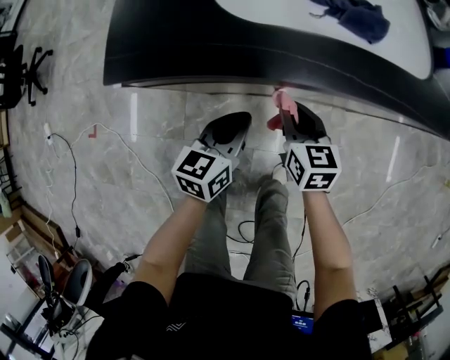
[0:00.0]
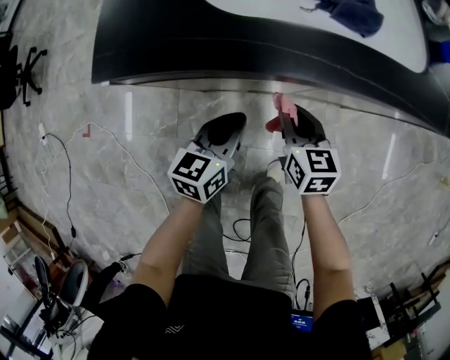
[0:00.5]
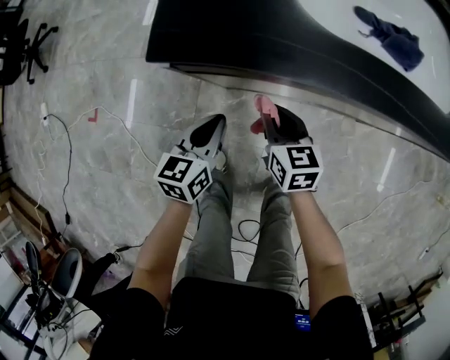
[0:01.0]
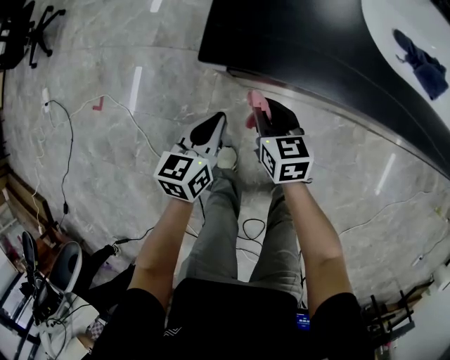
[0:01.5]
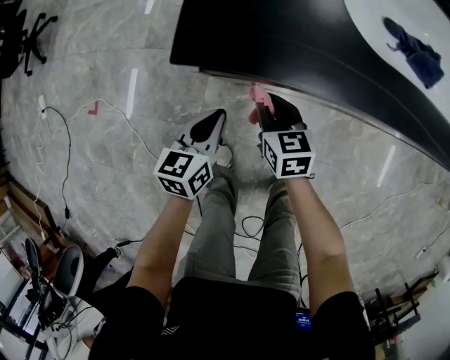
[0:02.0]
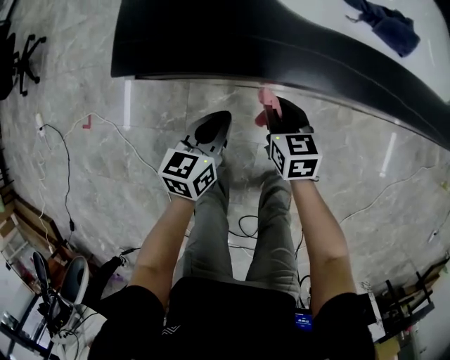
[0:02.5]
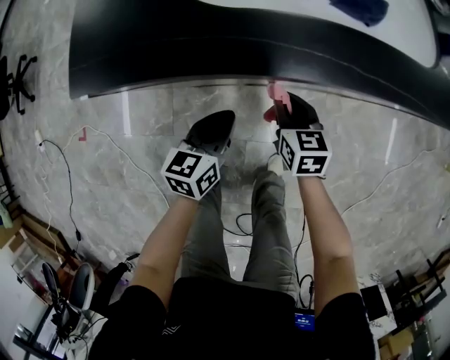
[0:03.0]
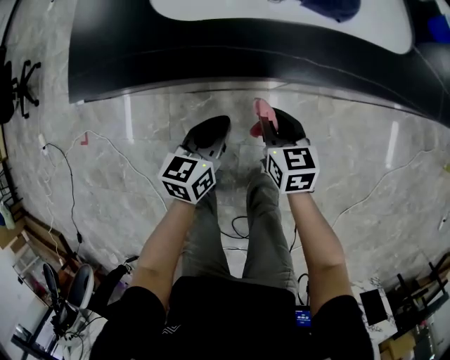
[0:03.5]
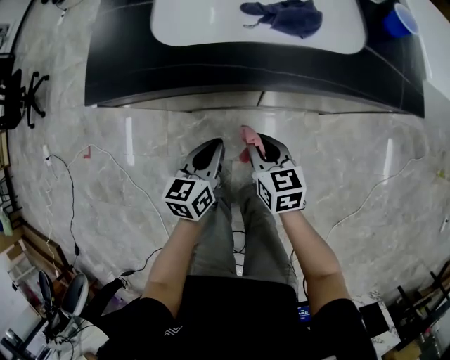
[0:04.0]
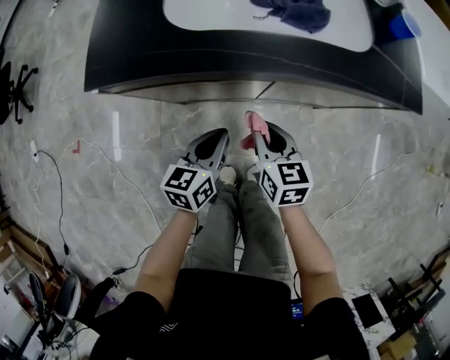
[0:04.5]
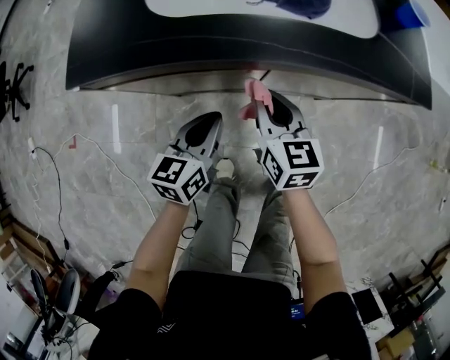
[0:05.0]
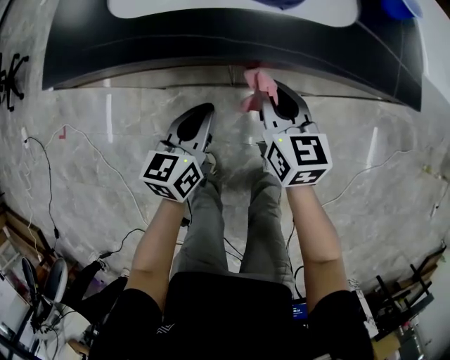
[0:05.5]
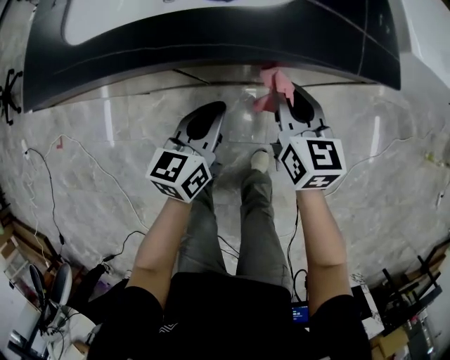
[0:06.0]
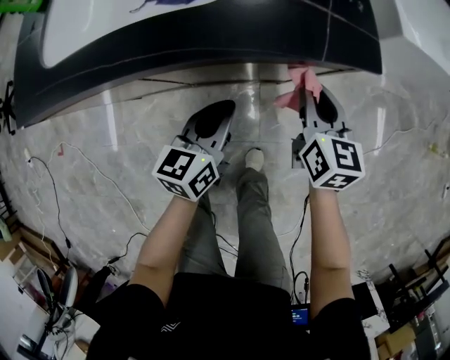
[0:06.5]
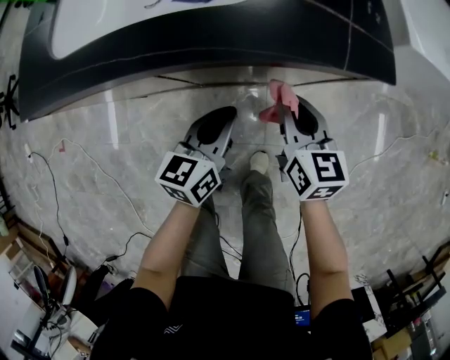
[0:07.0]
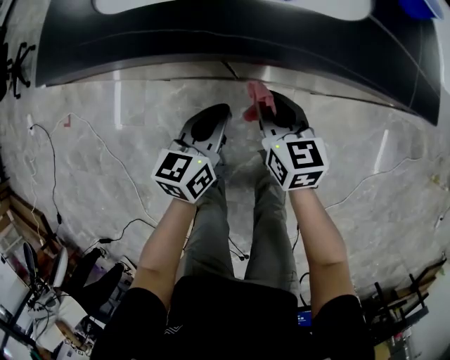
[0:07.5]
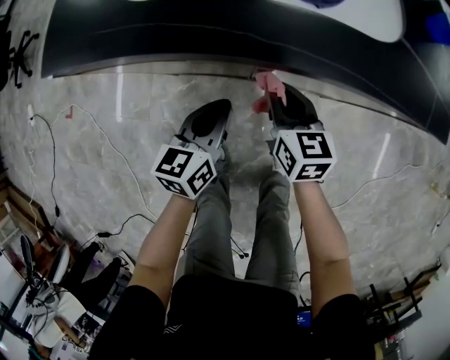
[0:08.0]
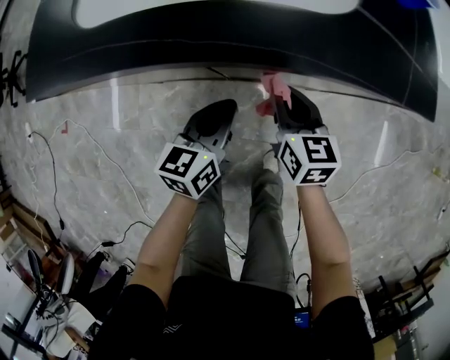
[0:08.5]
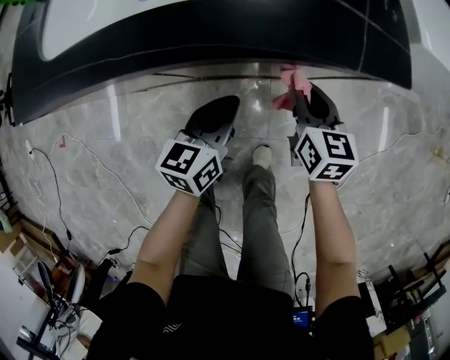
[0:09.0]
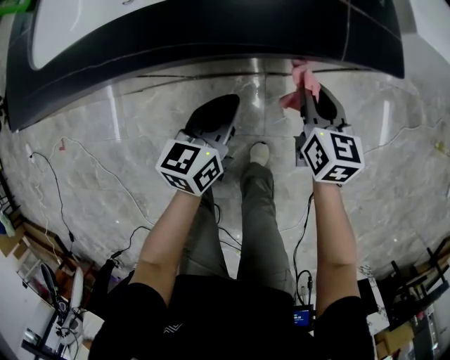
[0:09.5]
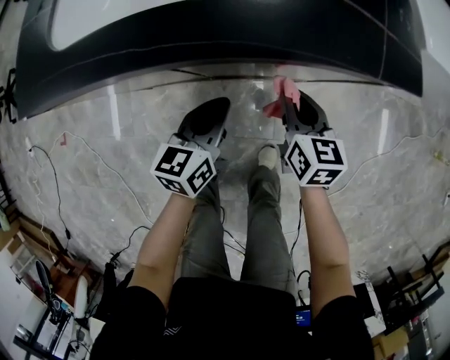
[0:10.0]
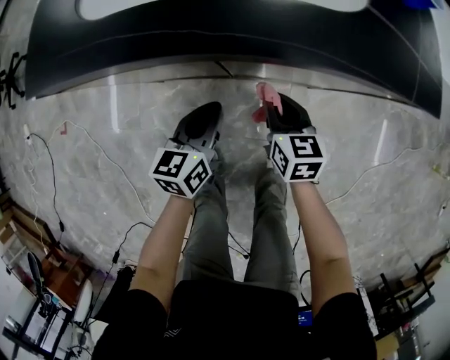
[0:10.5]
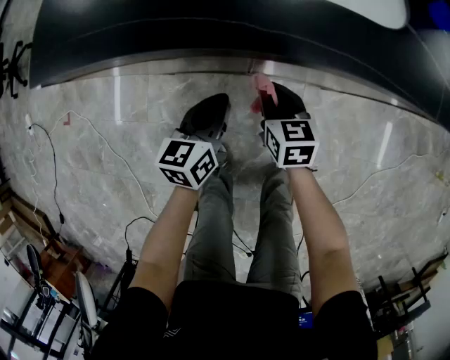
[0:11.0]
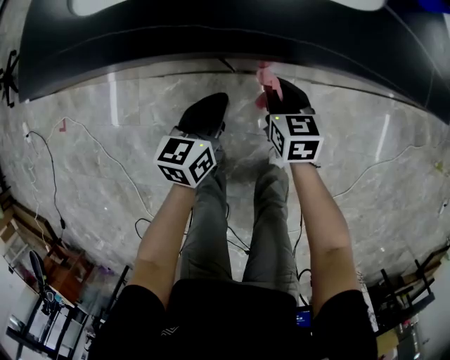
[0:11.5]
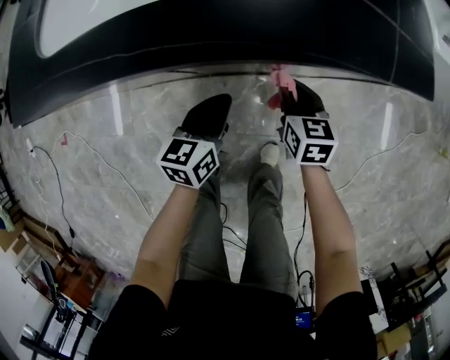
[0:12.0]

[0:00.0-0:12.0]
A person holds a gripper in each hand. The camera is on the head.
0:00.0 to 0:02.0: The grippers both shift to the left by about 20 cm.
0:02.0 to 0:04.0: Both grippers move to the right, approximately 25 cm.
0:04.0 to 0:06.0: Both grippers move to the right, about 20 cm.
0:06.0 to 0:08.0: The left gripper is displaced to the left by about 10 cm. Meanwhile the right gripper shifts some 15 cm to the left and downward.
0:08.0 to 0:10.0: The grippers both shift to the right by approximately 15 cm.
0:10.0 to 0:12.0: The left gripper moves some 15 cm to the left and comes back. The right gripper shifts approximately 5 cm downward, and reaches some 20 cm to the left, then returns.

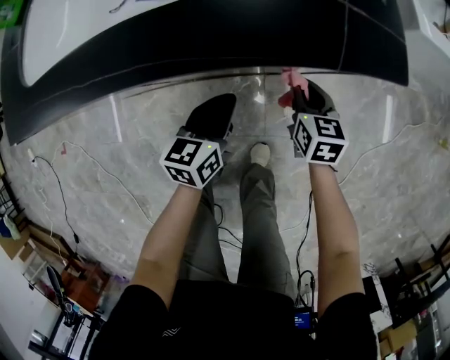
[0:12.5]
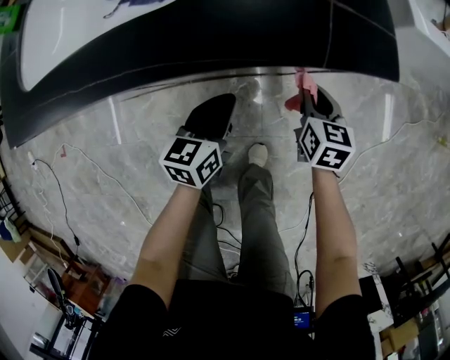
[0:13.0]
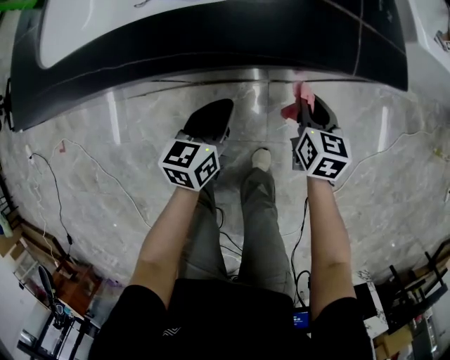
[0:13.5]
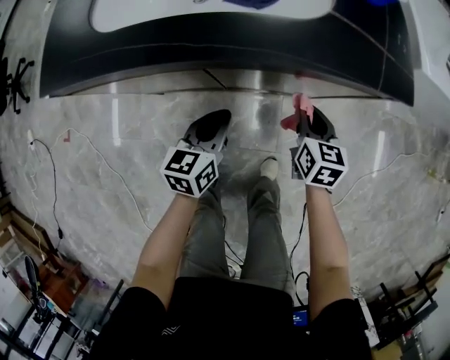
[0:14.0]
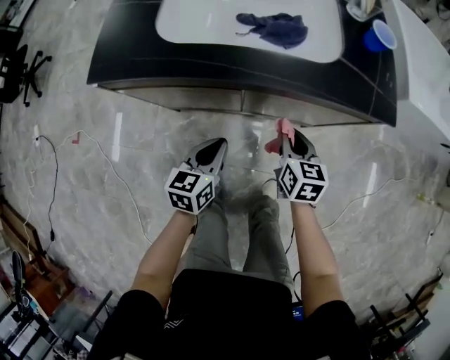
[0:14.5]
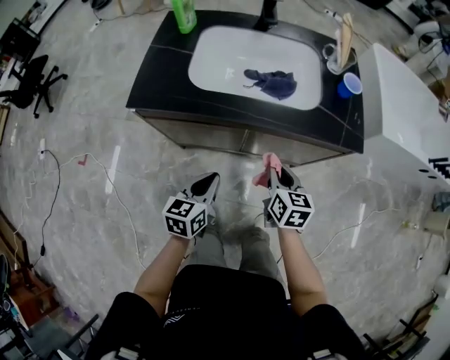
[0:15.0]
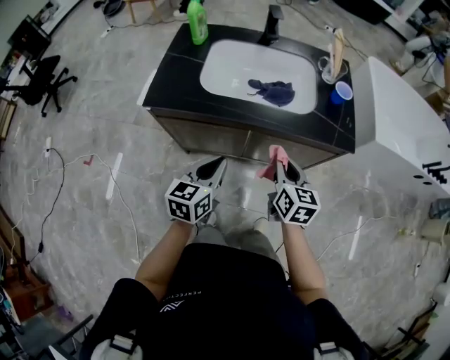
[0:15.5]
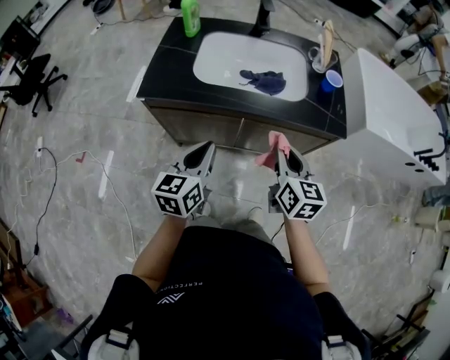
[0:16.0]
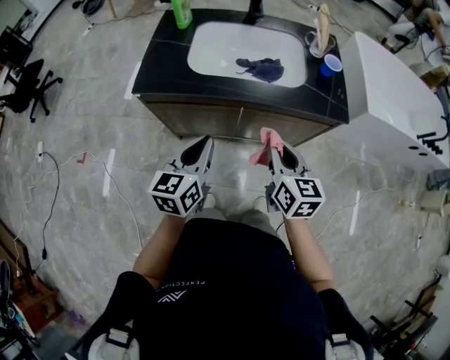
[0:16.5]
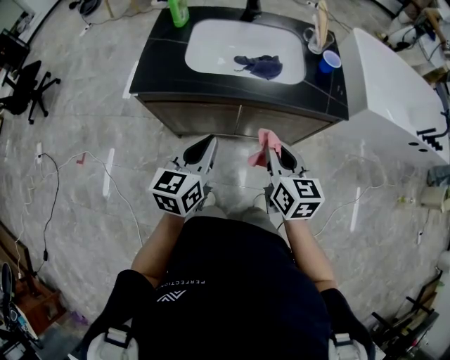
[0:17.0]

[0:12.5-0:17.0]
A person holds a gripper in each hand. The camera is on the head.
0:12.5 to 0:14.5: The left gripper is displaced to the left, backward and upward by some 25 cm, while the right gripper travels to the left, upward and backward by roughly 25 cm.
0:14.5 to 0:17.0: The right gripper moves upward and backward, approximately 25 cm. Meanwhile the left gripper heads upward, covering roughly 25 cm.

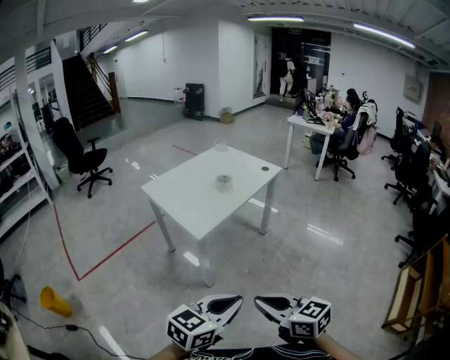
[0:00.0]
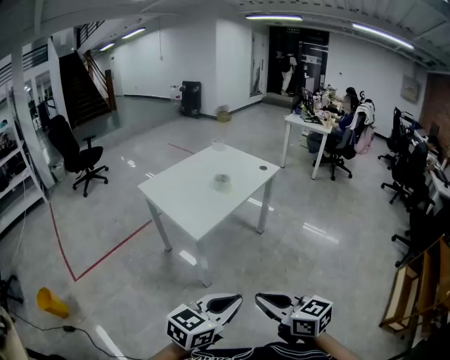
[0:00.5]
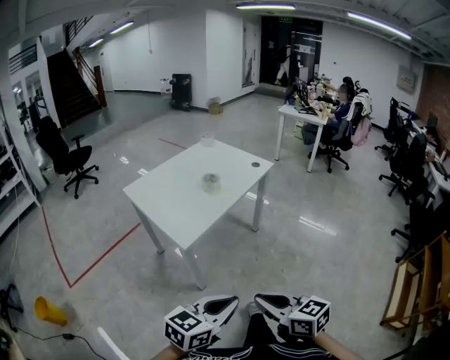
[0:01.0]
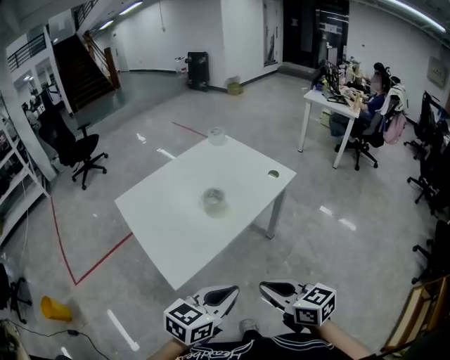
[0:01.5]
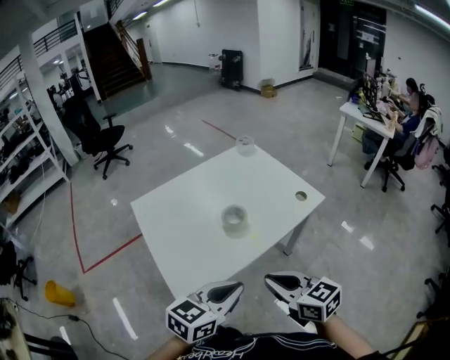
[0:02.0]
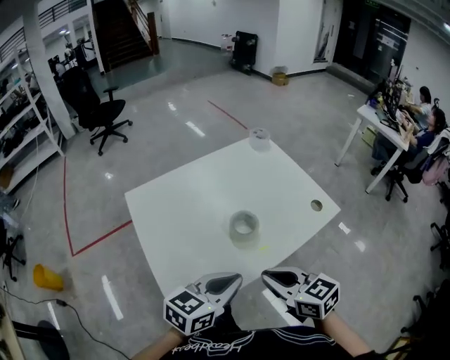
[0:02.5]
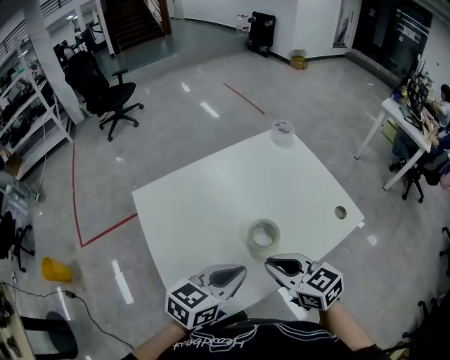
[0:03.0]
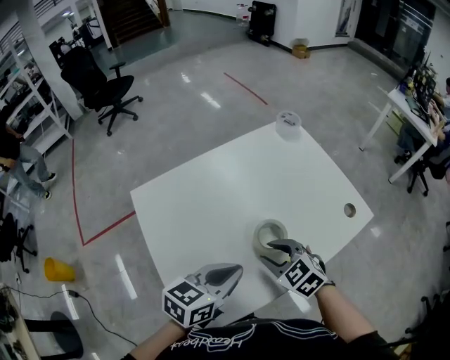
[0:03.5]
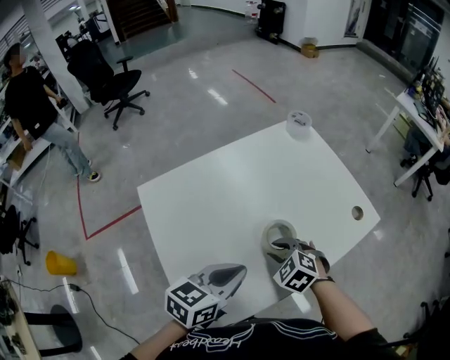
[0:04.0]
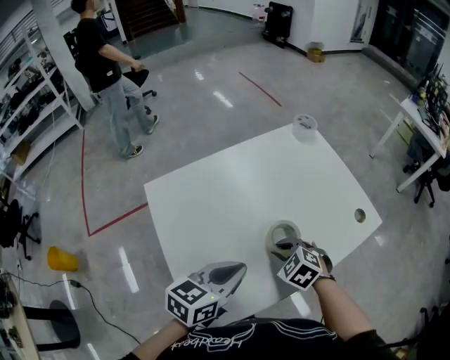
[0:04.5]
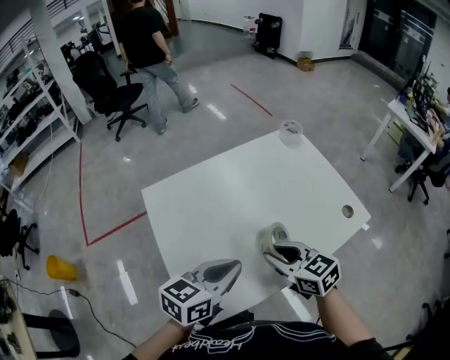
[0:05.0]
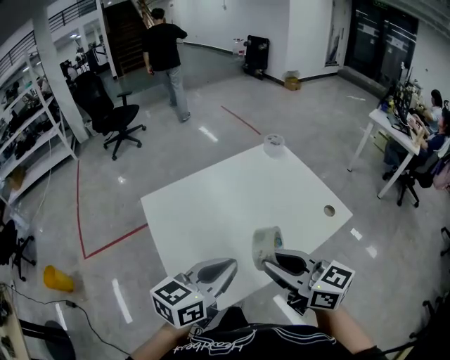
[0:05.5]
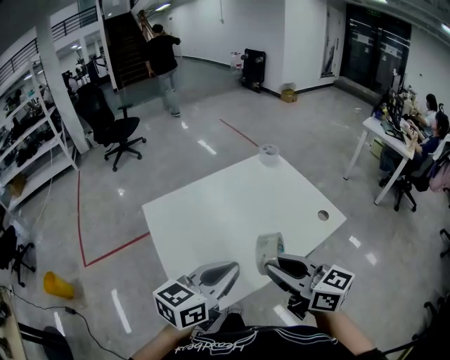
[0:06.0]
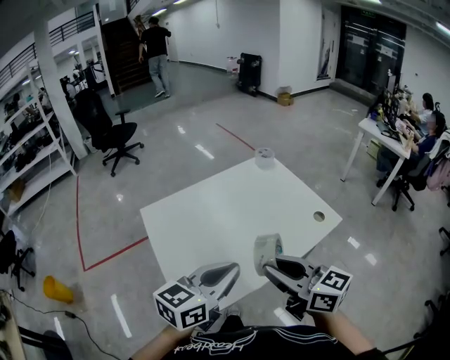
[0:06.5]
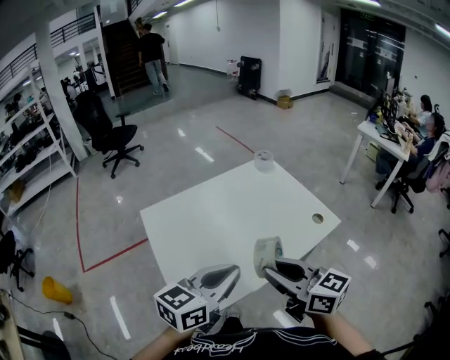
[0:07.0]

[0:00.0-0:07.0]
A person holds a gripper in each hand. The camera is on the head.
0:00.0 to 0:02.0: The pair of grippers is taken forward, about 40 cm.
0:02.0 to 0:03.5: The left gripper shifts some 20 cm forward and to the left; the right gripper travels forward, downward and to the left by some 25 cm, rotates about 40 degrees, and opens up.
0:03.5 to 0:05.0: The right gripper travels upward by about 5 cm, and changes its angle by some 30 degrees.
0:05.0 to 0:07.0: The left gripper travels upward and backward by approximately 10 cm. Meanwhile the right gripper shifts approximately 20 cm upward and backward, and turns by approximately 30 degrees.

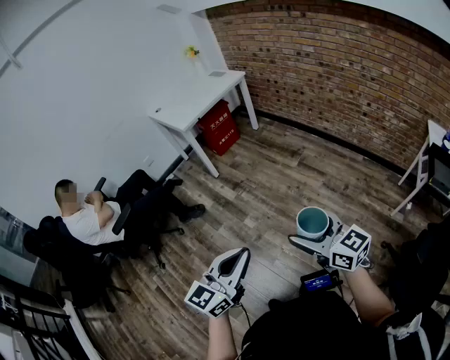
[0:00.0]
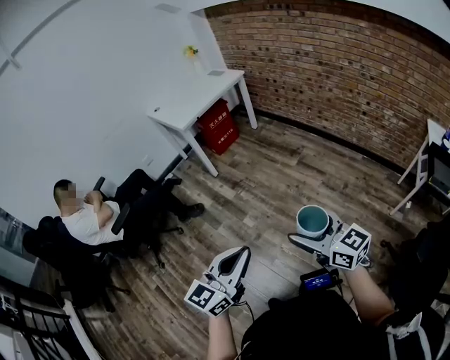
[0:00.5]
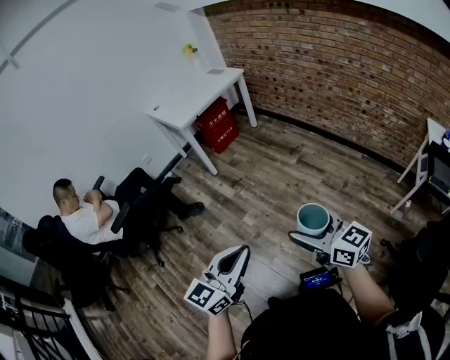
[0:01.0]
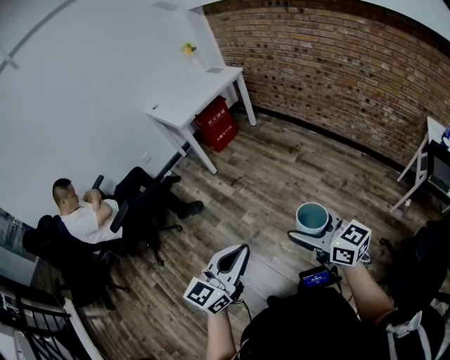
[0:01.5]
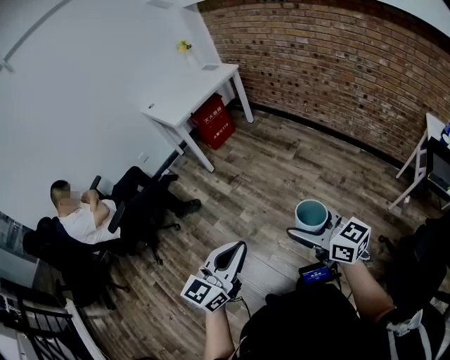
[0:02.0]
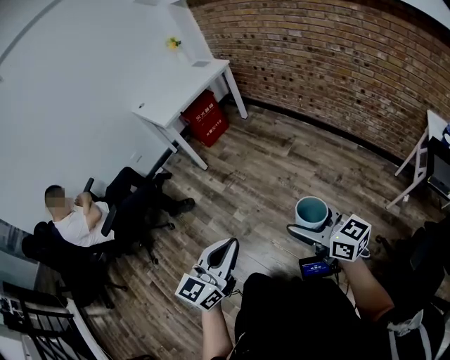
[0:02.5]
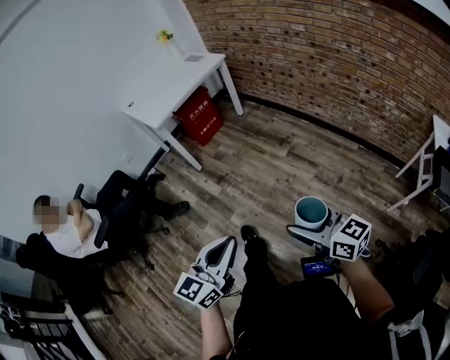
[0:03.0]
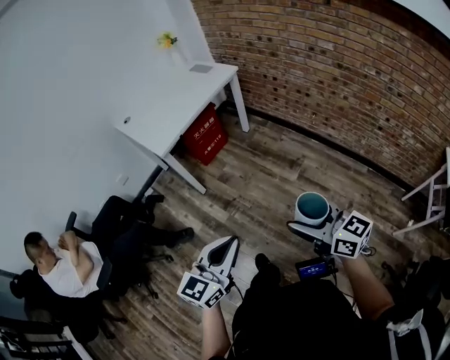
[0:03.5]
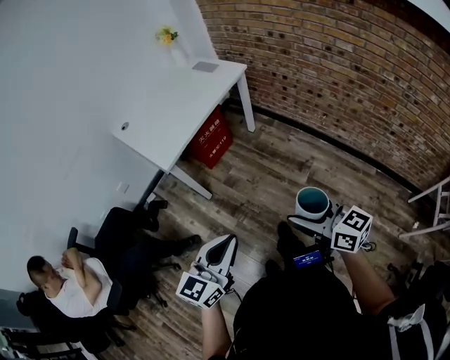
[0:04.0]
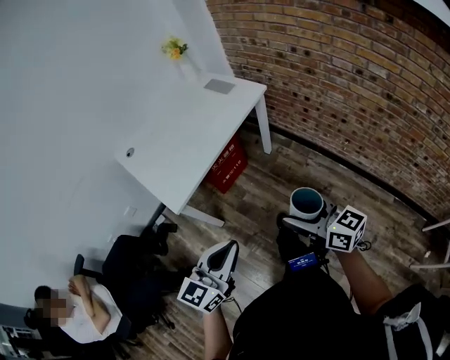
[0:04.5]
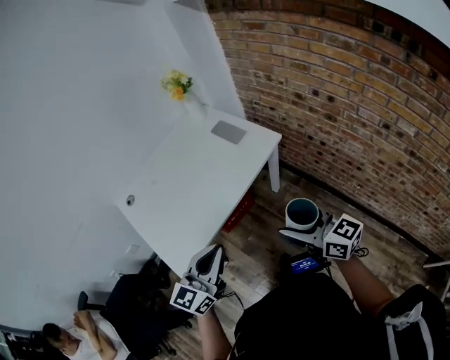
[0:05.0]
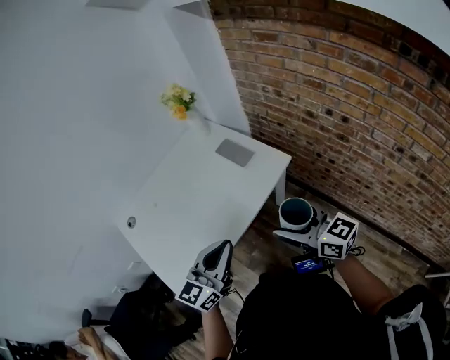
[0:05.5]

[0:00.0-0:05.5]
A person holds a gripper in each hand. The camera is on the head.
0:00.0 to 0:02.0: The grippers stay close to where they were, moving slightly.
0:02.0 to 0:03.5: The two grippers go about 40 cm forward.
0:03.5 to 0:05.5: The two grippers travel together, forward, about 70 cm.
